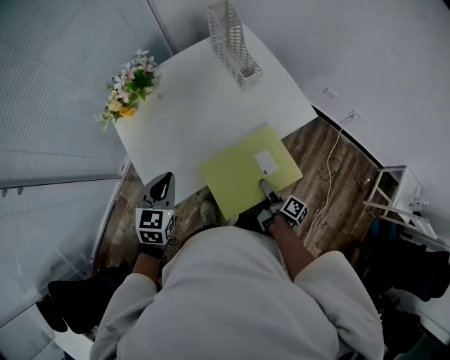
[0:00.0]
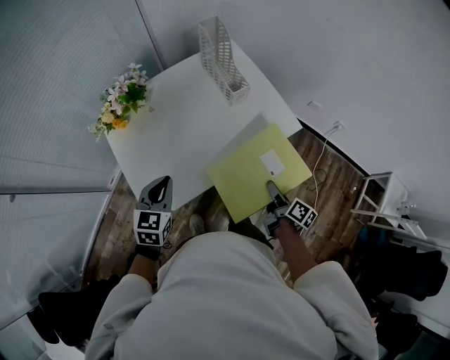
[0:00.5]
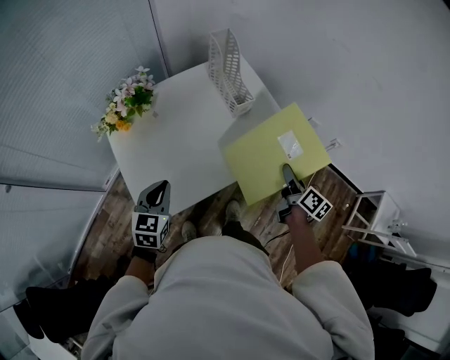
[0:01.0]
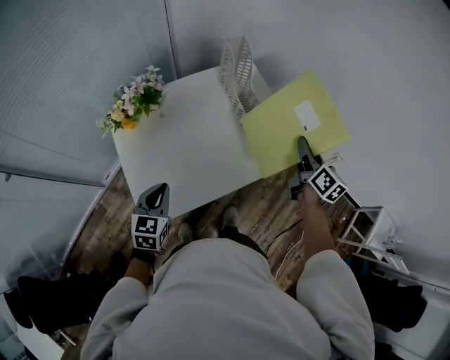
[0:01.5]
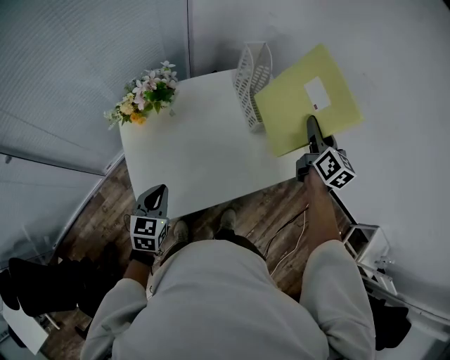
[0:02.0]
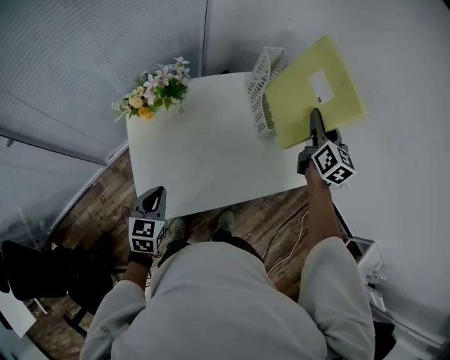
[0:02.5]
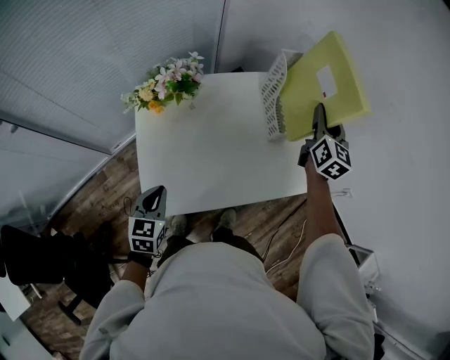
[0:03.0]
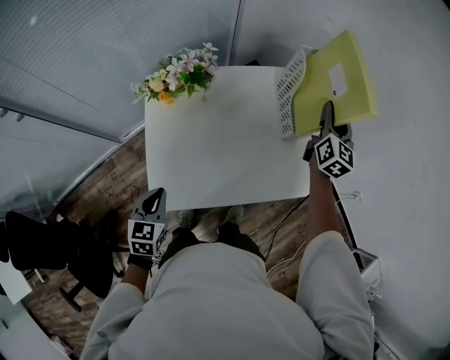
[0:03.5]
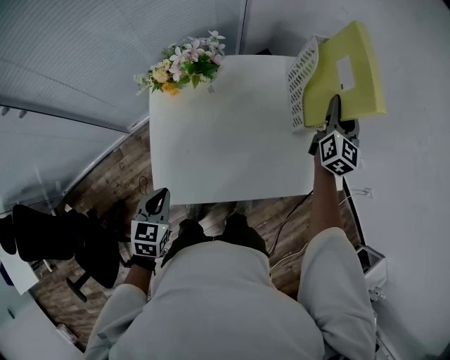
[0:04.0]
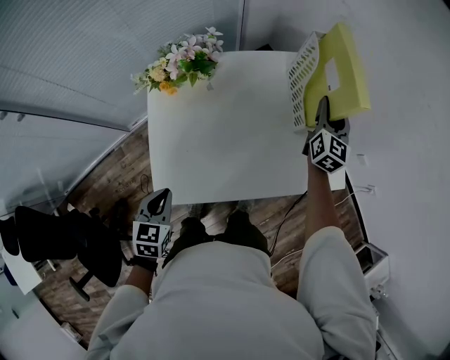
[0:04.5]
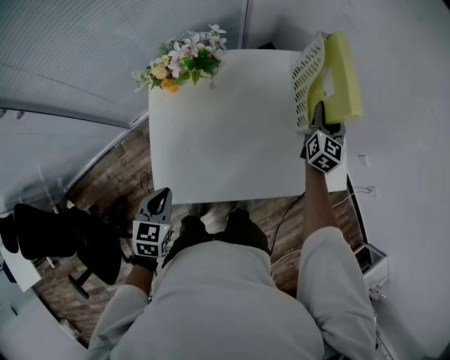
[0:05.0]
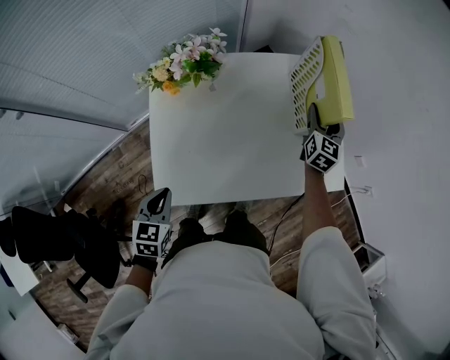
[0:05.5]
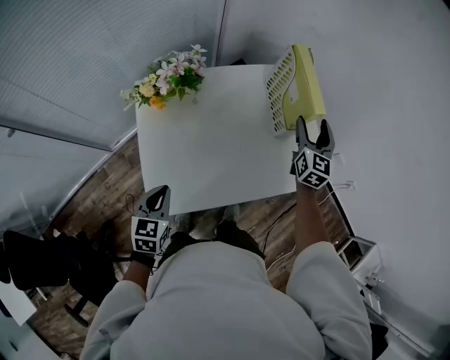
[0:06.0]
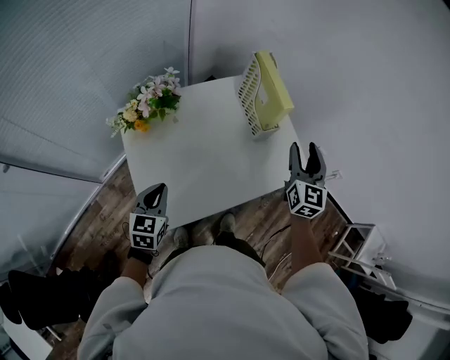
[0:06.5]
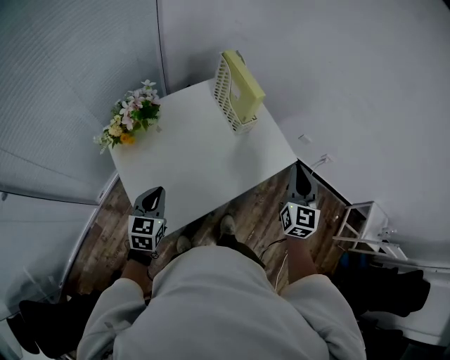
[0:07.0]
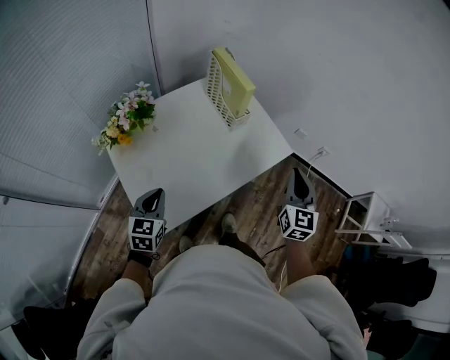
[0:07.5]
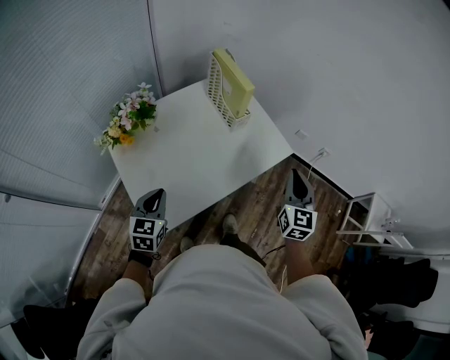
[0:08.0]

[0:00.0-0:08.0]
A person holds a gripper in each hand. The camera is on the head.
0:00.0 to 0:02.0: The right gripper heads forward and upward, covering roughly 50 cm, and twists some 60 degrees counterclockwise, seen from behind.
0:02.0 to 0:04.0: The left gripper heads to the left, covering approximately 5 cm; the right gripper travels forward, to the left and downward by roughly 15 cm.
0:04.0 to 0:06.0: The right gripper is displaced backward by about 5 cm, travels downward and back again, some 10 cm each way, and opens up.
0:06.0 to 0:08.0: The left gripper is displaced upward by about 5 cm, and rotates about 20 degrees. The right gripper is displaced backward and to the right by approximately 30 cm, and closes up.

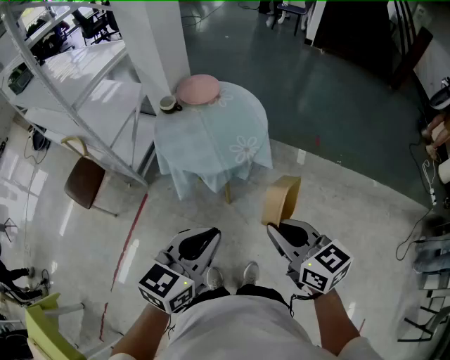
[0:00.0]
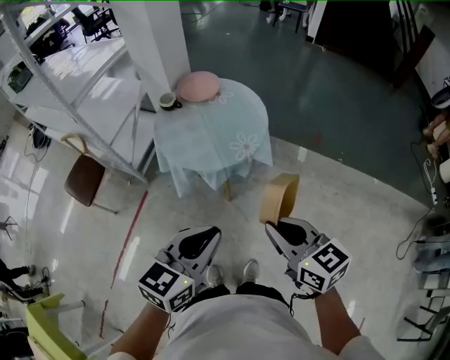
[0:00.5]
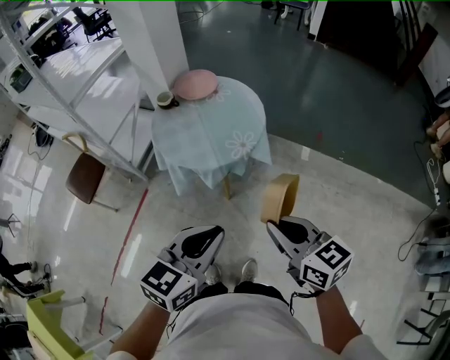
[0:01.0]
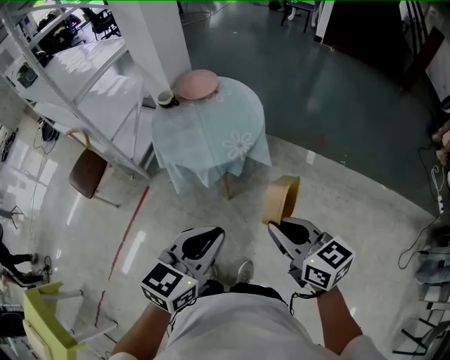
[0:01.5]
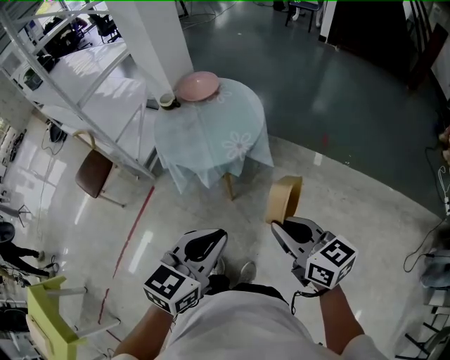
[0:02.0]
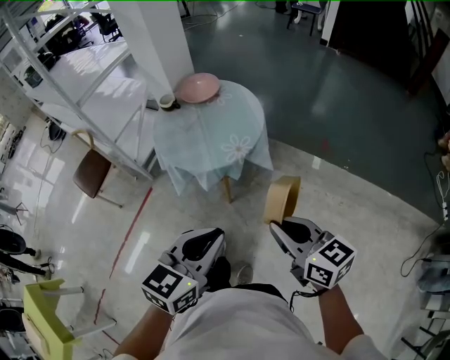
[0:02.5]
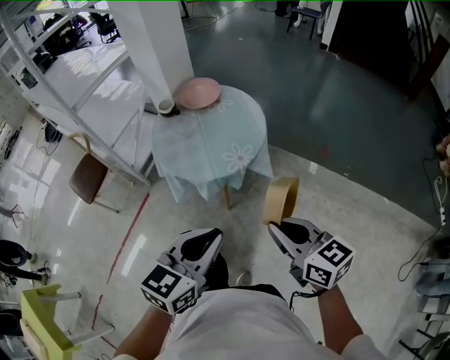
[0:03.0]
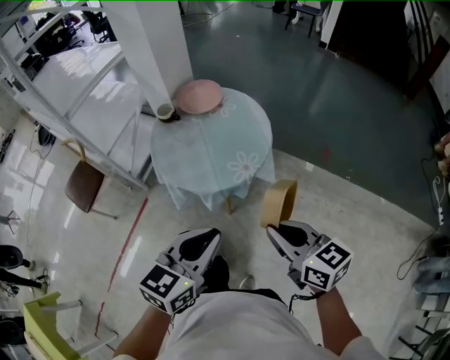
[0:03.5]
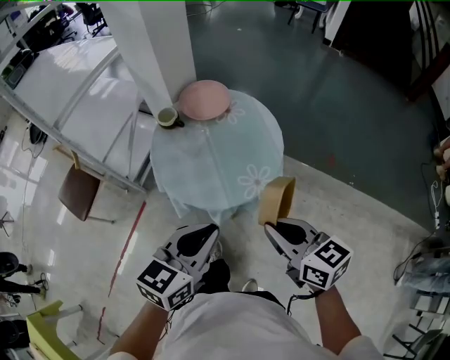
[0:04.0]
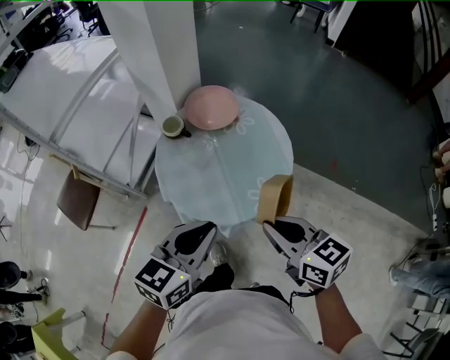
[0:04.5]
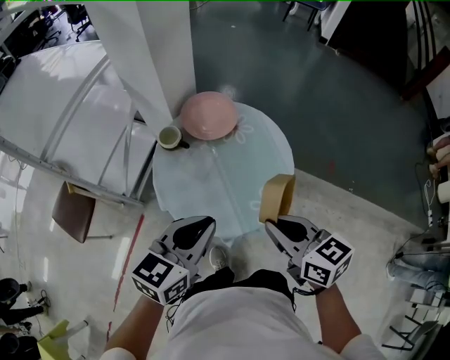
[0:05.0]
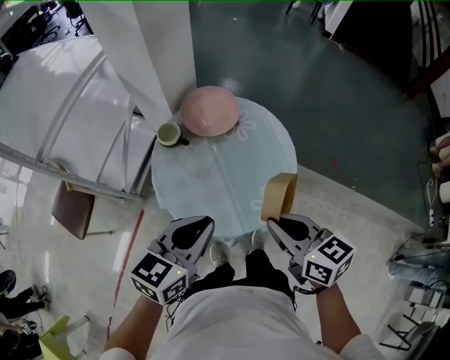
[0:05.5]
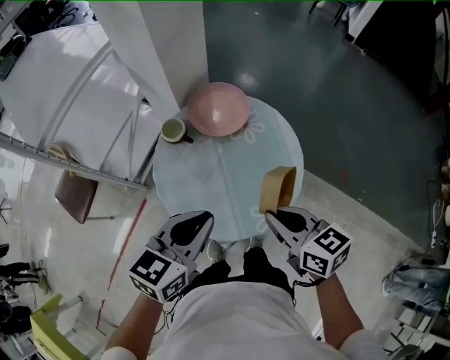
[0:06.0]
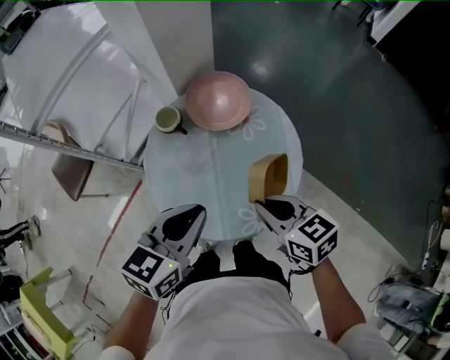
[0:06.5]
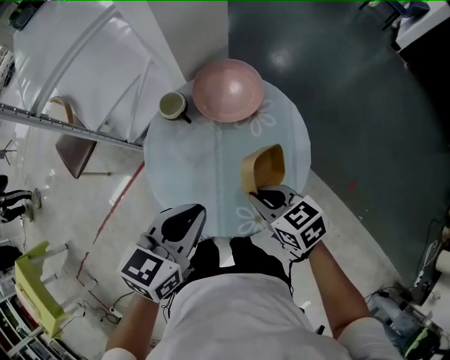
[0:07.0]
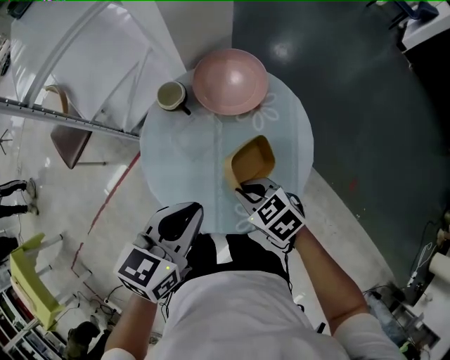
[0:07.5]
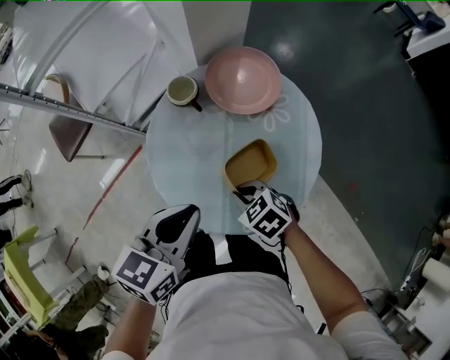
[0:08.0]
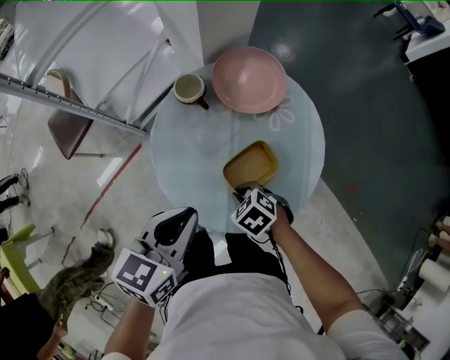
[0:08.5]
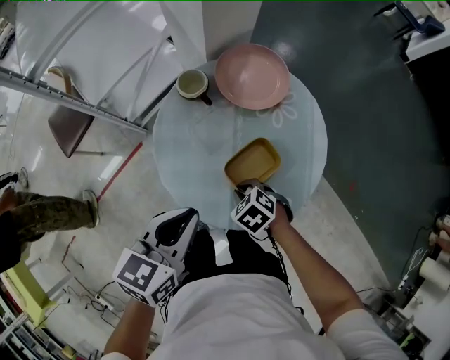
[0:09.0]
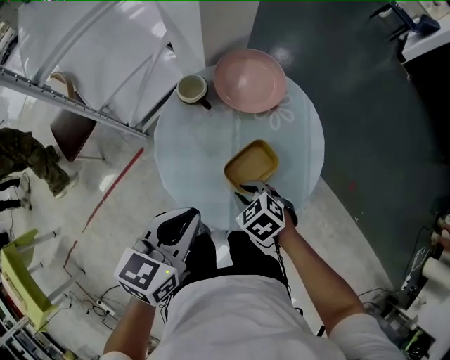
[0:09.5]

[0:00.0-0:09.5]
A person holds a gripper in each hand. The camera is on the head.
0:00.0 to 0:02.0: Both grippers move to the right, some 10 cm.
0:02.0 to 0:04.0: Both grippers travel together forward and to the left, roughly 25 cm.
0:04.0 to 0:05.5: Both grippers travel together forward and to the left, some 15 cm.
0:05.5 to 0:07.5: The left gripper moves approximately 10 cm, and swivels roughly 30 degrees; the right gripper moves downward, some 20 cm, and swivels approximately 50 degrees.
0:07.5 to 0:09.5: The right gripper is displaced to the left and downward by about 10 cm. Meanwhile the left gripper shifts approximately 10 cm to the left.

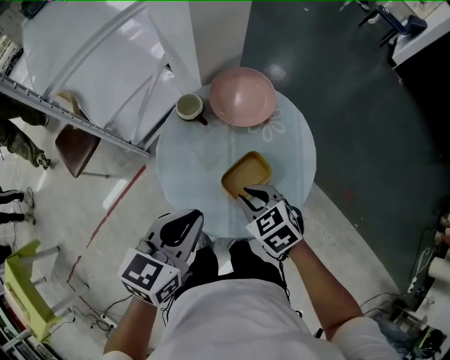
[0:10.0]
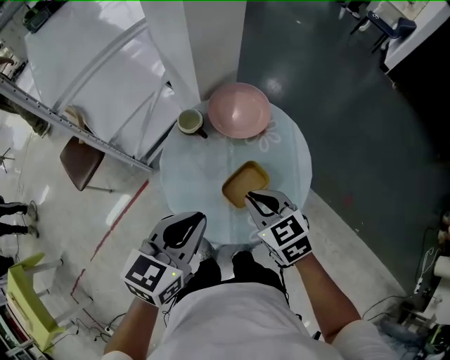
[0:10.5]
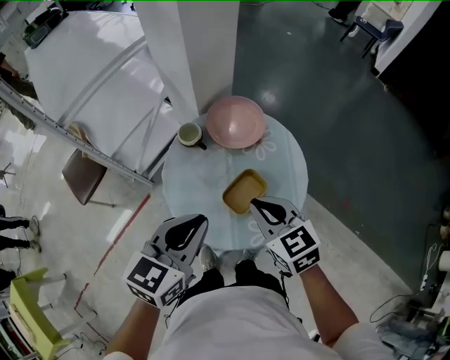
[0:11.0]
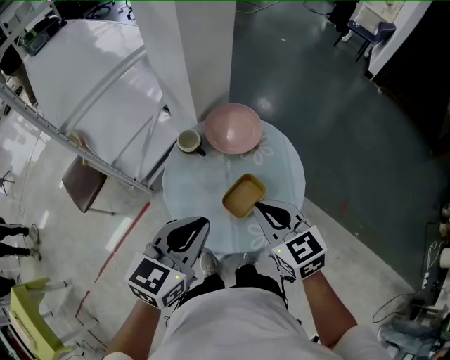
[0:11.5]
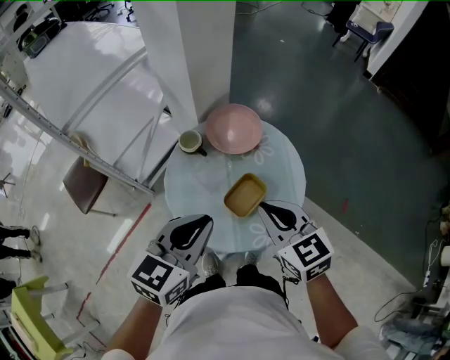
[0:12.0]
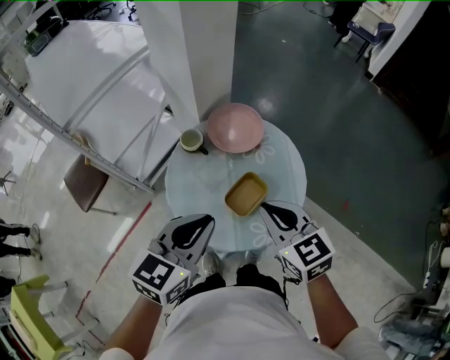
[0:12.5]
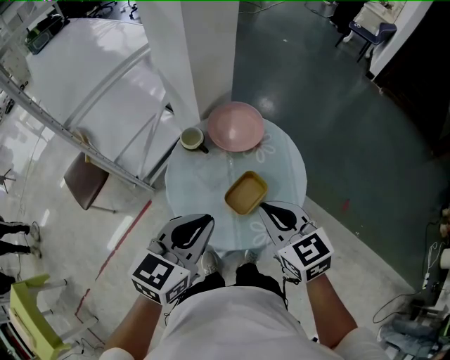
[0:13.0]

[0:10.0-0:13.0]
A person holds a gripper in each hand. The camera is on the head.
0:10.0 to 0:11.5: The left gripper is displaced upward by roughly 5 cm, while the right gripper goes roughly 15 cm upward, and changes its angle by about 30 degrees.
0:11.5 to 0:13.0: The grippers make only small movements.

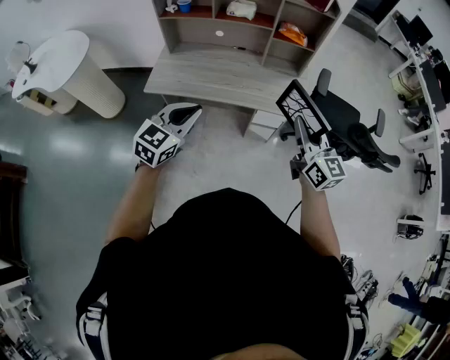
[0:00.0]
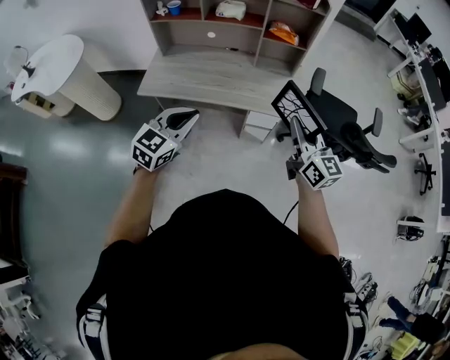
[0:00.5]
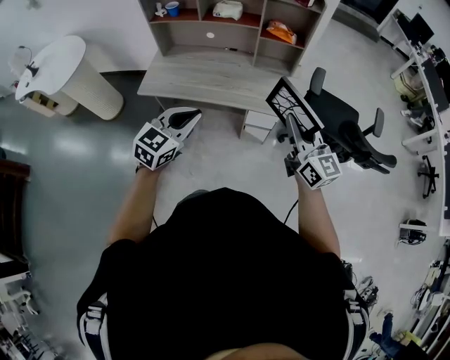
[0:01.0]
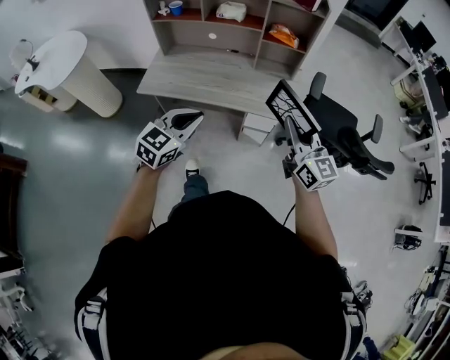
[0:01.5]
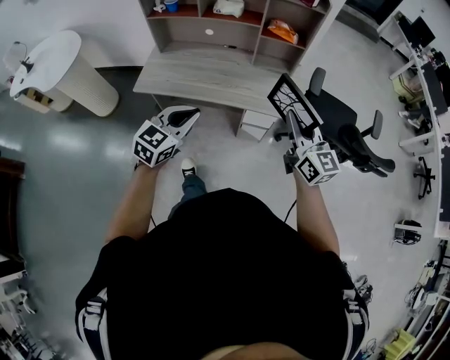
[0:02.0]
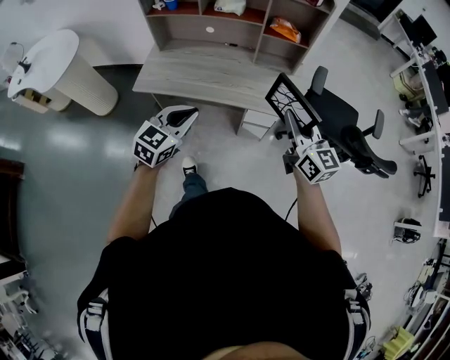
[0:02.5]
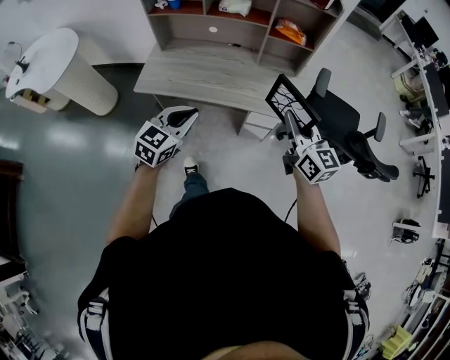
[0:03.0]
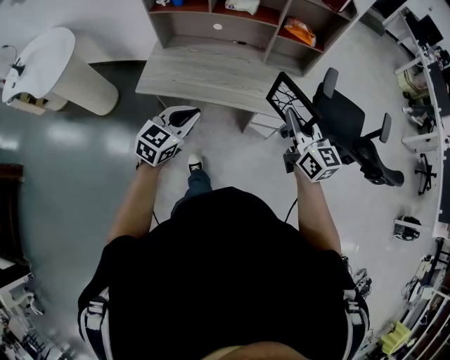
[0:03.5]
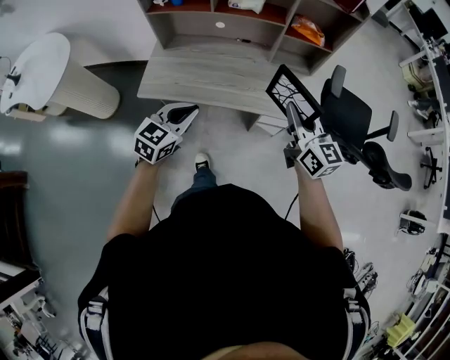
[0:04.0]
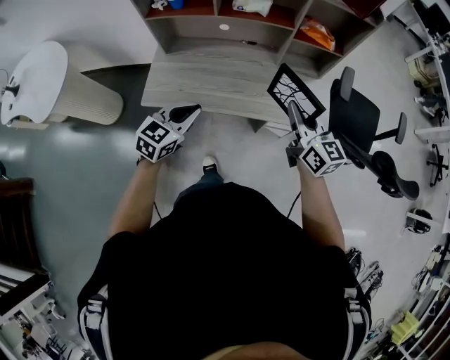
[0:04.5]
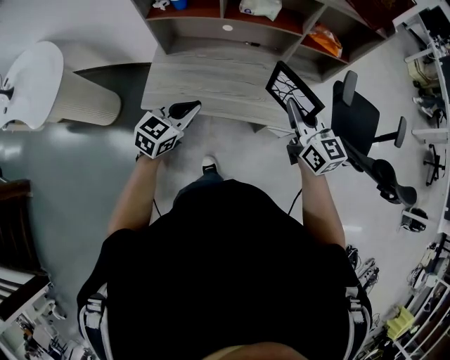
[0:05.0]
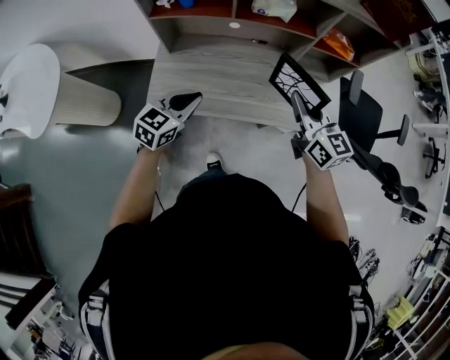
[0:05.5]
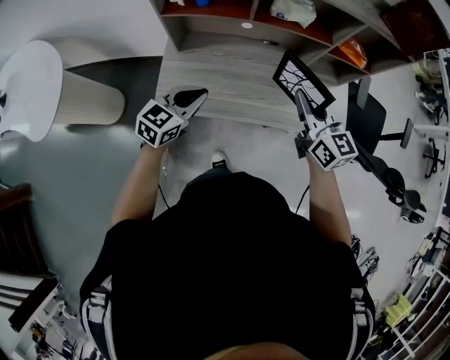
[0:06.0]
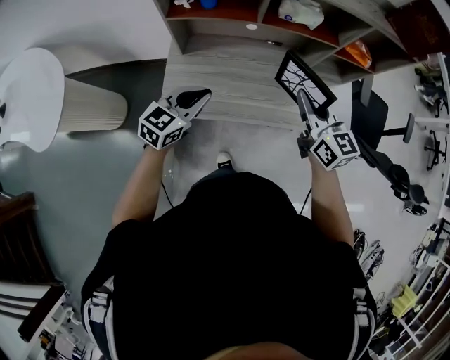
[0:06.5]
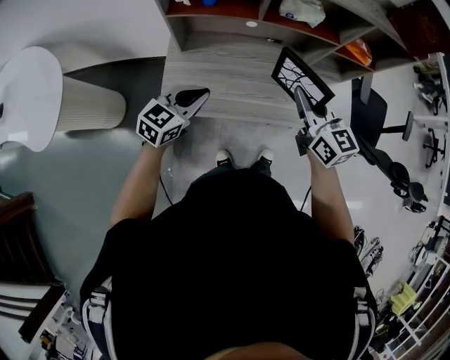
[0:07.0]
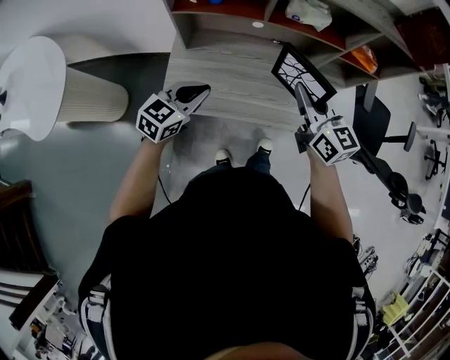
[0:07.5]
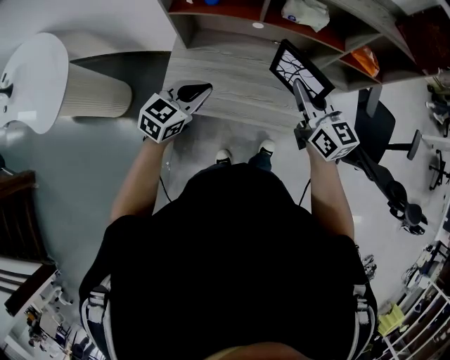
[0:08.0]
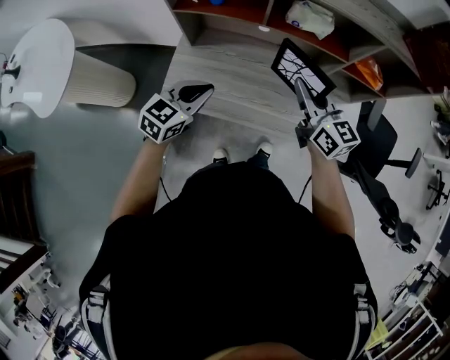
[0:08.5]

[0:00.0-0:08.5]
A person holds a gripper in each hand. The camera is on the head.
0:00.0 to 0:02.0: The left gripper shifts approximately 5 cm to the right, while the right gripper moves about 5 cm.
0:02.0 to 0:04.0: The left gripper moves forward, to the left and downward, some 20 cm; the right gripper is displaced forward and to the left by some 15 cm.
0:04.0 to 0:06.5: The grippers both shift to the left and forward by some 25 cm.
0:06.5 to 0:08.5: The right gripper goes some 5 cm forward.
